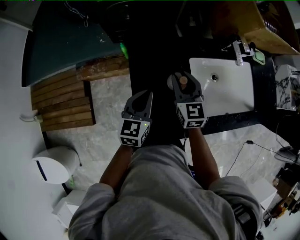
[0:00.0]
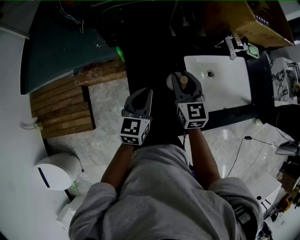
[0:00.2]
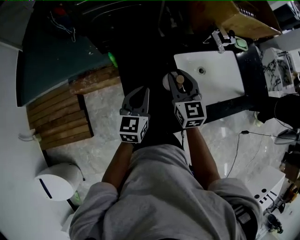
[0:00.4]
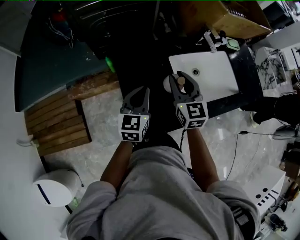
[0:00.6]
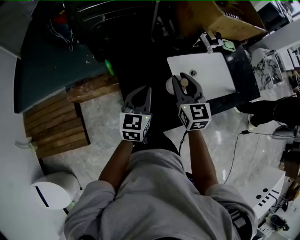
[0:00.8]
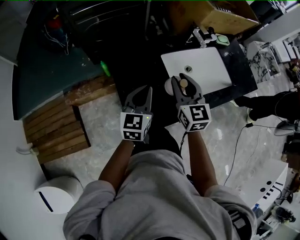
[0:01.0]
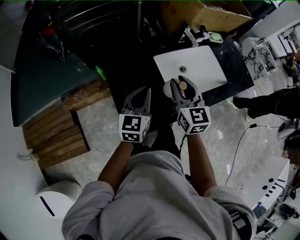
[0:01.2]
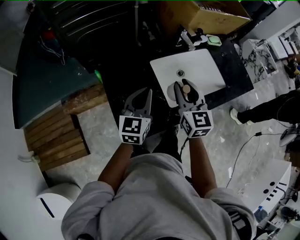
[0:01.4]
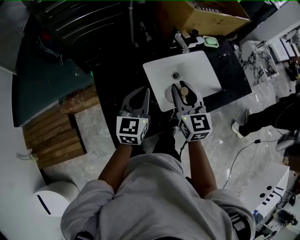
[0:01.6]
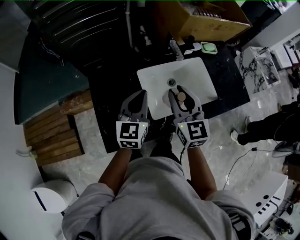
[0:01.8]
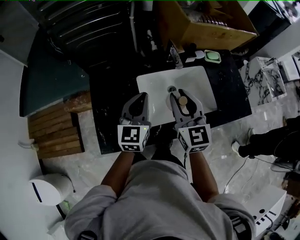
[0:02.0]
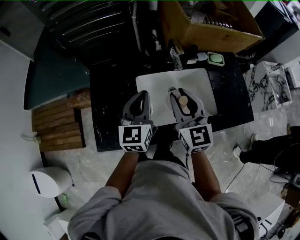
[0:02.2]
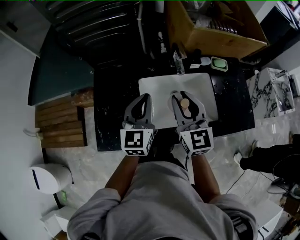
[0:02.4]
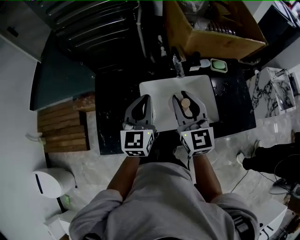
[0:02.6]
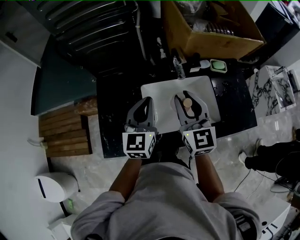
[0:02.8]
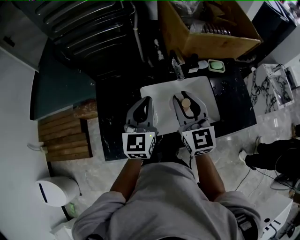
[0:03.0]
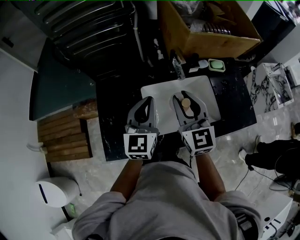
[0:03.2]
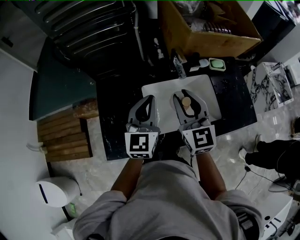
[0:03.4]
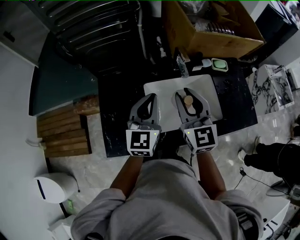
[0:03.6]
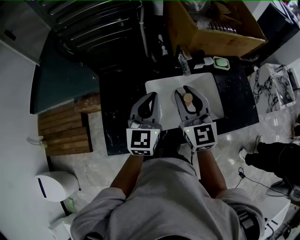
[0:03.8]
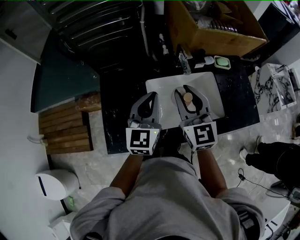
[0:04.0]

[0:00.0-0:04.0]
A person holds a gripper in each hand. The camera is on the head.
0:00.0 to 0:01.4: The right gripper travels to the right, upward and backward by roughly 20 cm. Meanwhile the left gripper heads to the right and upward, covering approximately 15 cm.
0:01.4 to 0:02.6: The right gripper moves to the right and forward, roughly 15 cm. The left gripper travels to the right, forward and upward by roughly 15 cm, and changes its angle by approximately 20 degrees.
0:02.6 to 0:04.0: There are only small adjustments of the grippers.

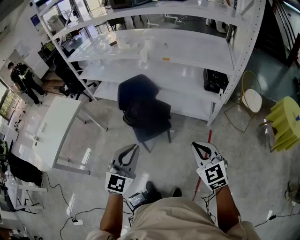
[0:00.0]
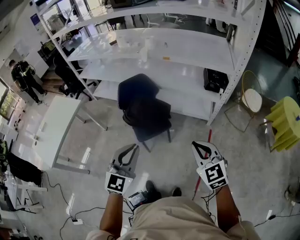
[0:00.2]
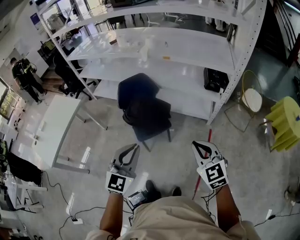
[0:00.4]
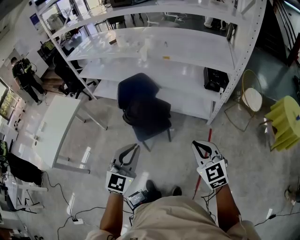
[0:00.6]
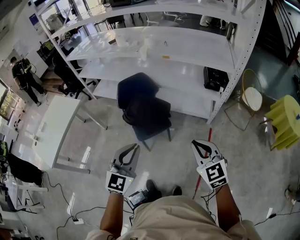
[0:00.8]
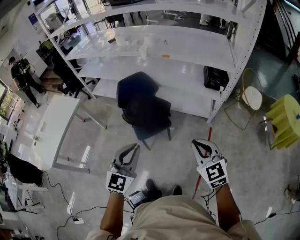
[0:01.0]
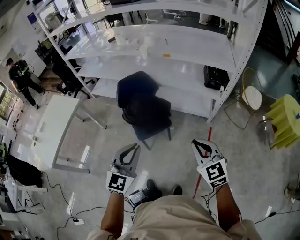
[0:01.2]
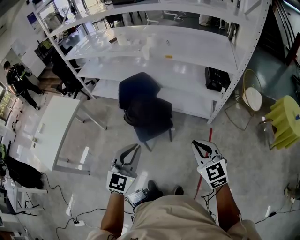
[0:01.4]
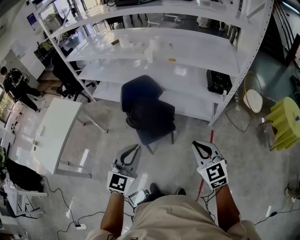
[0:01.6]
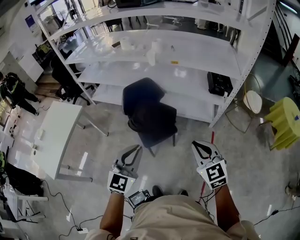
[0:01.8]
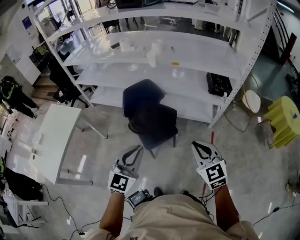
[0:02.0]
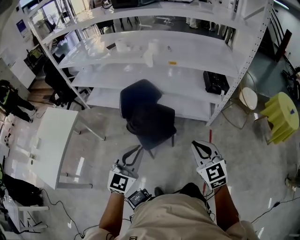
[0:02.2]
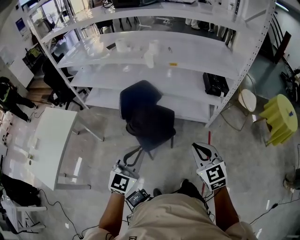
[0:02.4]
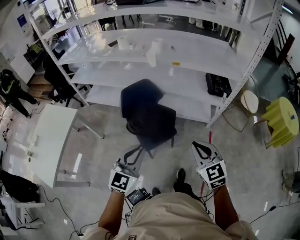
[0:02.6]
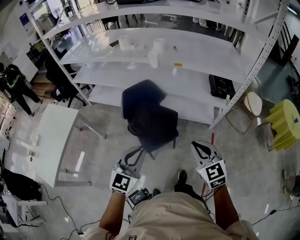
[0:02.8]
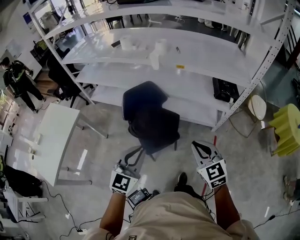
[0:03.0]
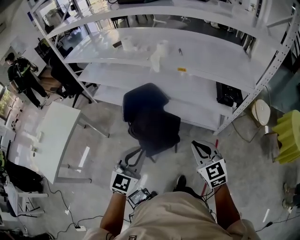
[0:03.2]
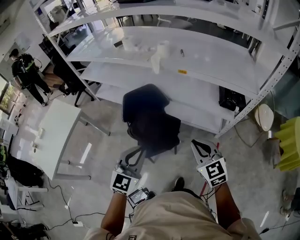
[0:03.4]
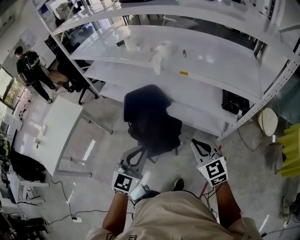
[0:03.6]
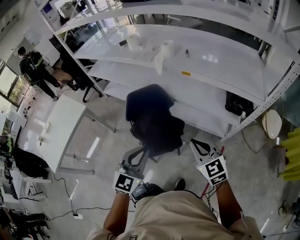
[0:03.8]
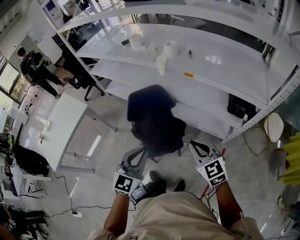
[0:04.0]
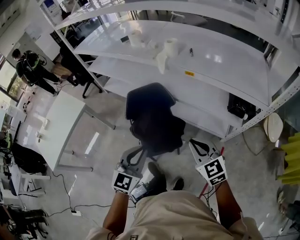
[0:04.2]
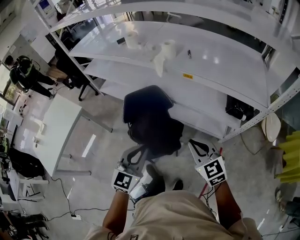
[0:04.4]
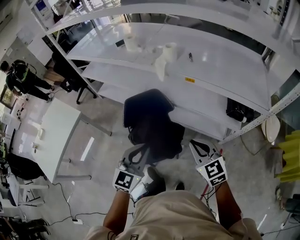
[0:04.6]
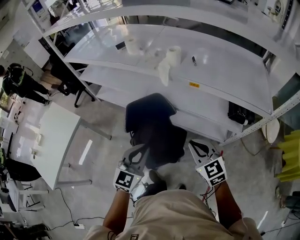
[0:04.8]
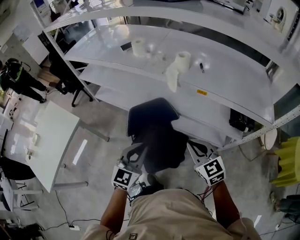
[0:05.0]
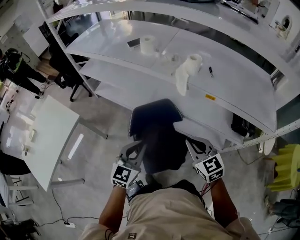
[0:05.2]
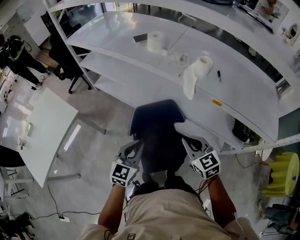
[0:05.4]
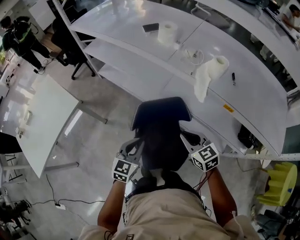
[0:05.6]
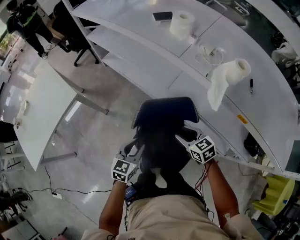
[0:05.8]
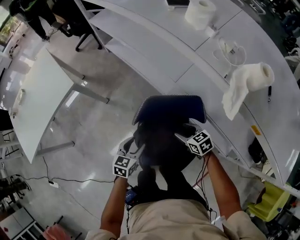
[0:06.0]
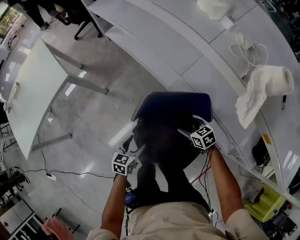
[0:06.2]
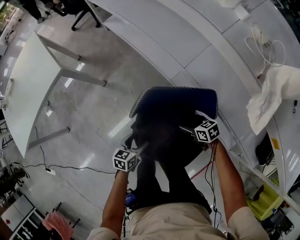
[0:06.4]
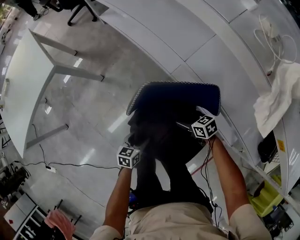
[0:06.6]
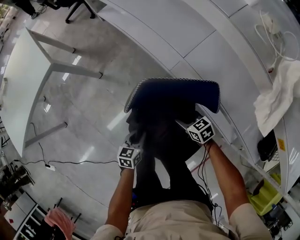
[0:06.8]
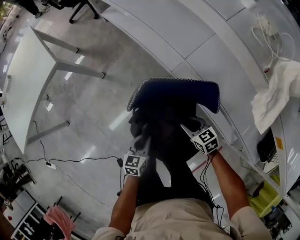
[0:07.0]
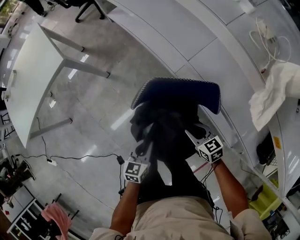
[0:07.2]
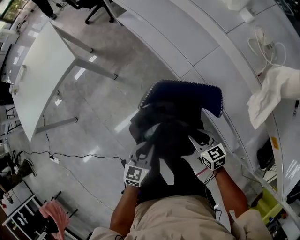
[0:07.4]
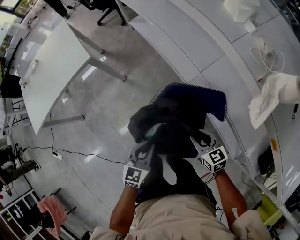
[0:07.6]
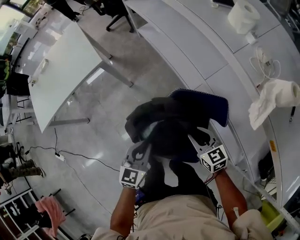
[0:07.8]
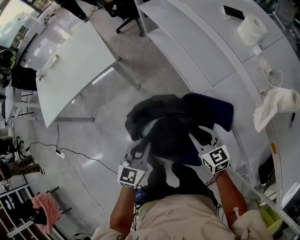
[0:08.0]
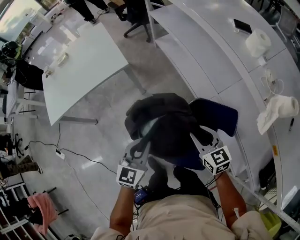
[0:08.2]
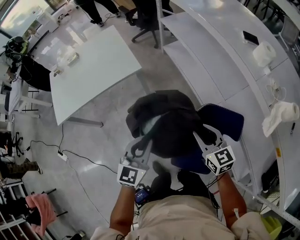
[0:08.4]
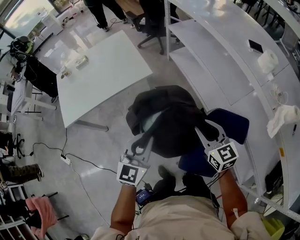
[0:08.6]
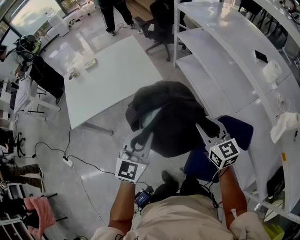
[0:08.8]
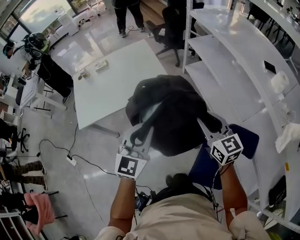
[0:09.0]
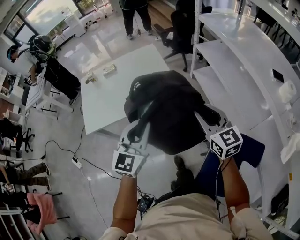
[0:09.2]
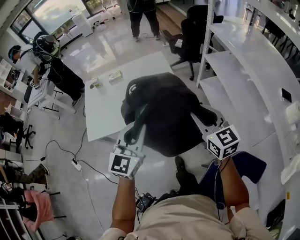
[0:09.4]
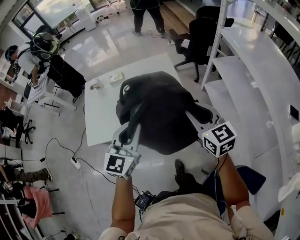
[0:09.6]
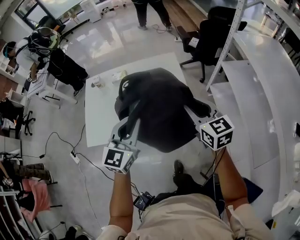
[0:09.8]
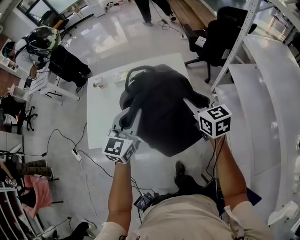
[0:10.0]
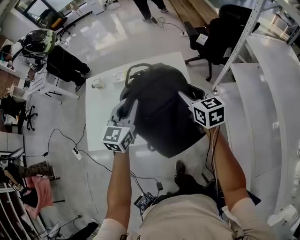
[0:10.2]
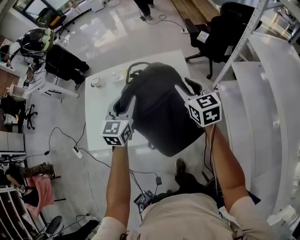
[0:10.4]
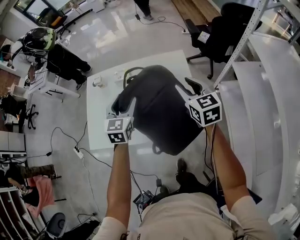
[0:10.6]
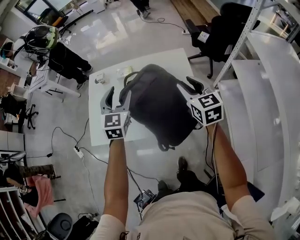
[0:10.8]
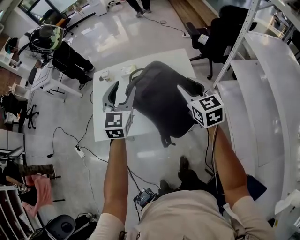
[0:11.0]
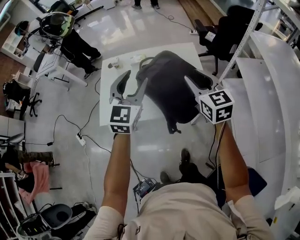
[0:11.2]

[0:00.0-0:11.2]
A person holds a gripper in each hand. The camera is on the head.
0:00.0 to 0:01.6: The grippers both shift to the left by about 5 cm.
0:01.6 to 0:03.2: The grippers both shift forward by approximately 15 cm.
0:03.2 to 0:04.8: Both grippers travel together forward, approximately 15 cm.
0:04.8 to 0:06.4: The grippers both shift downward by approximately 50 cm. The left gripper twists roughly 50 degrees counterclockwise, seen from behind, and opens up, while the right gripper changes its angle by roughly 60 degrees, and opens.
0:06.4 to 0:08.0: The left gripper is displaced upward by about 30 cm, swivels some 40 degrees, and closes up; the right gripper moves upward and to the left, approximately 30 cm, rotates approximately 30 degrees, and closes.
0:08.0 to 0:09.6: The pair of grippers is taken to the left and forward, roughly 50 cm. Both grippers move upward, some 20 cm. The right gripper turns by roughly 20 degrees, while the left gripper swivels roughly 30 degrees.
0:09.6 to 0:11.2: Both grippers travel together forward and to the left, some 15 cm. The left gripper opens its fingers.

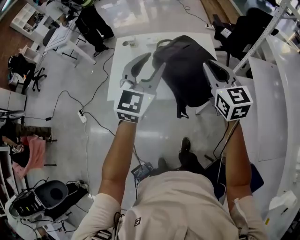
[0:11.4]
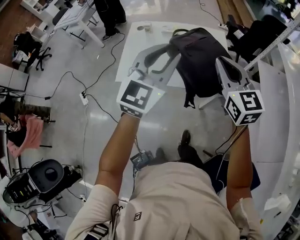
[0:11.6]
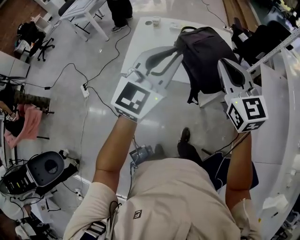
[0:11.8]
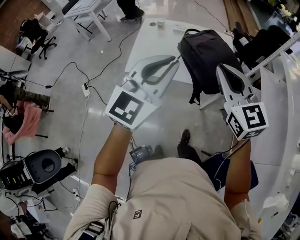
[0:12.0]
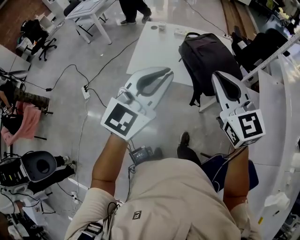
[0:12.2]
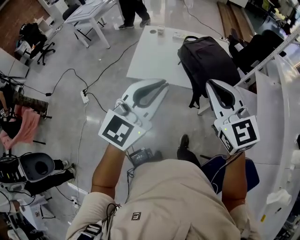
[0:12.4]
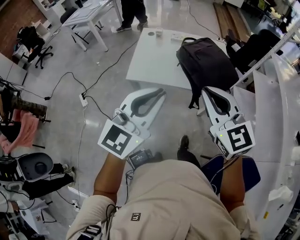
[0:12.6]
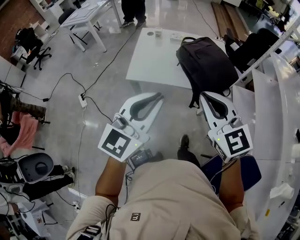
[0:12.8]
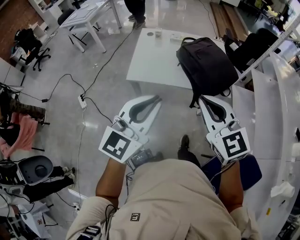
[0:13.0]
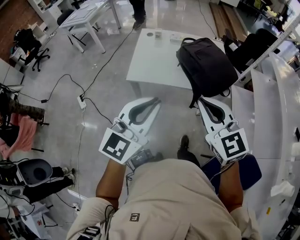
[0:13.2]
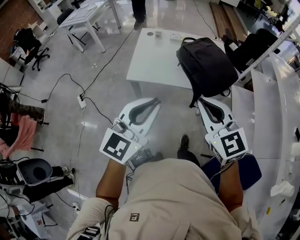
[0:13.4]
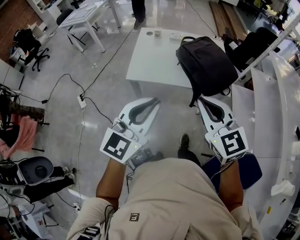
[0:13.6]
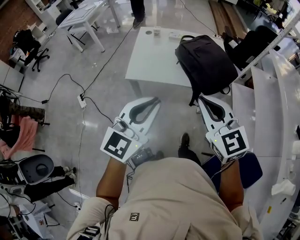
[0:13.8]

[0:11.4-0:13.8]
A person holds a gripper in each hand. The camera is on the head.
0:11.4 to 0:12.6: The two grippers go roughly 30 cm backward and to the left. The left gripper closes.
0:12.6 to 0:13.8: There are only small adjustments of the grippers.

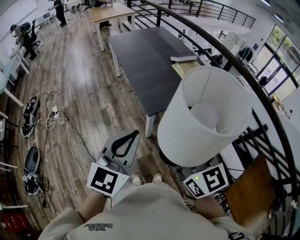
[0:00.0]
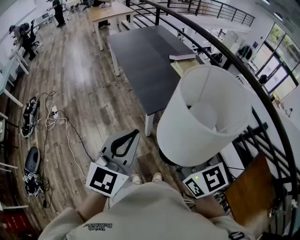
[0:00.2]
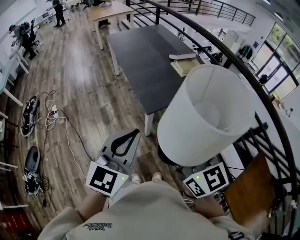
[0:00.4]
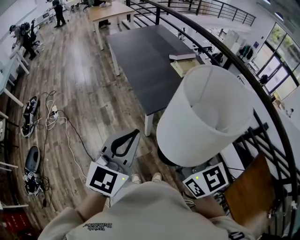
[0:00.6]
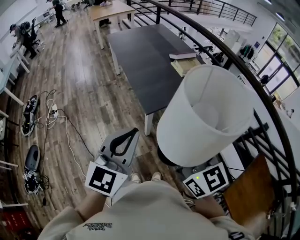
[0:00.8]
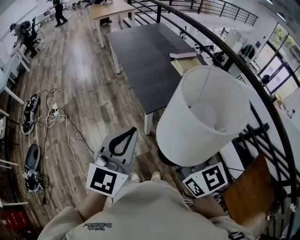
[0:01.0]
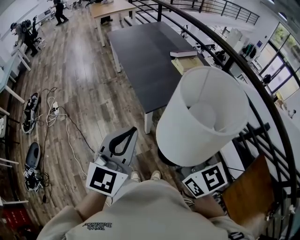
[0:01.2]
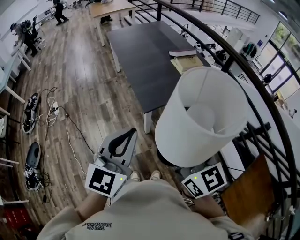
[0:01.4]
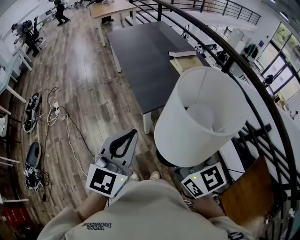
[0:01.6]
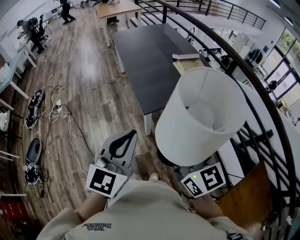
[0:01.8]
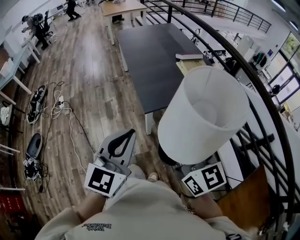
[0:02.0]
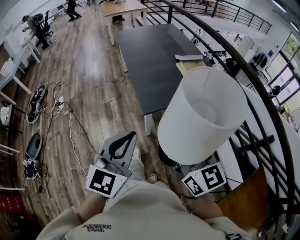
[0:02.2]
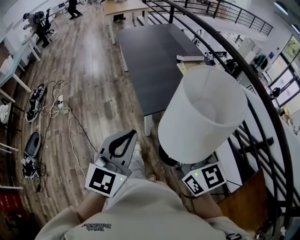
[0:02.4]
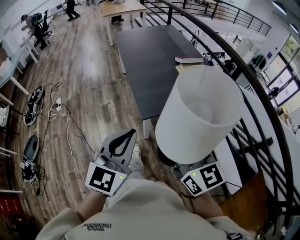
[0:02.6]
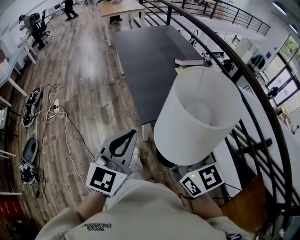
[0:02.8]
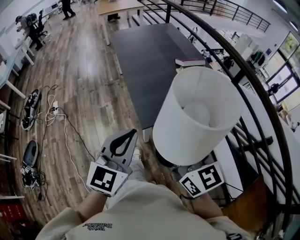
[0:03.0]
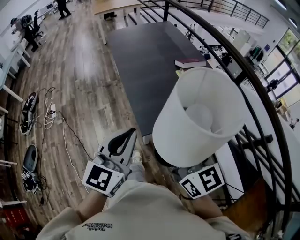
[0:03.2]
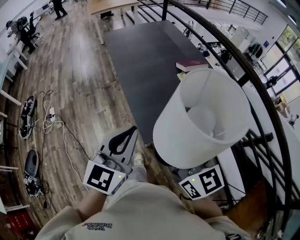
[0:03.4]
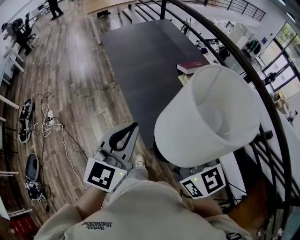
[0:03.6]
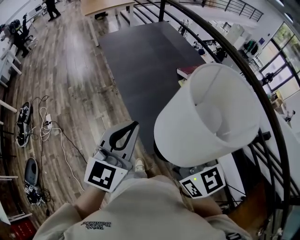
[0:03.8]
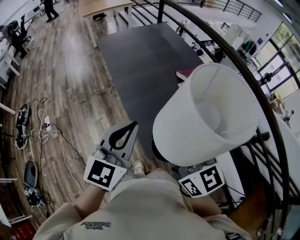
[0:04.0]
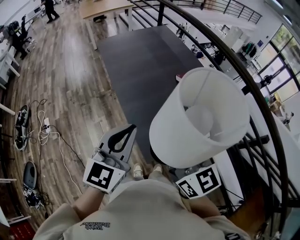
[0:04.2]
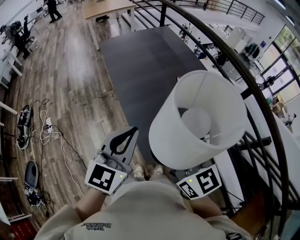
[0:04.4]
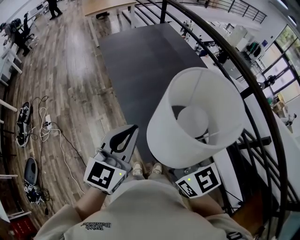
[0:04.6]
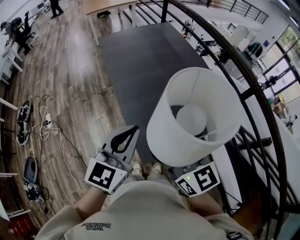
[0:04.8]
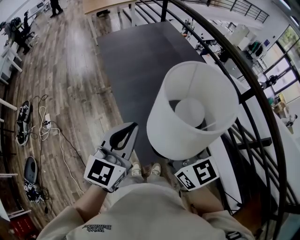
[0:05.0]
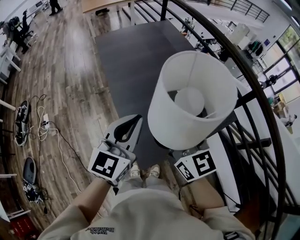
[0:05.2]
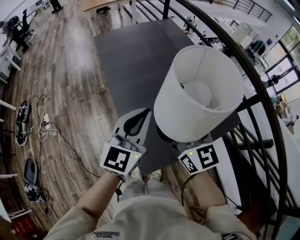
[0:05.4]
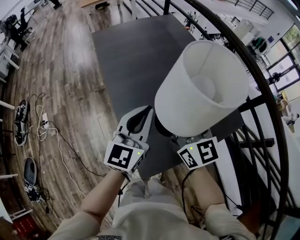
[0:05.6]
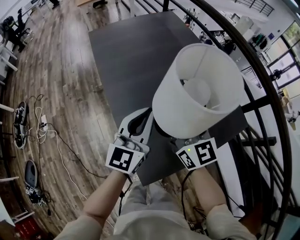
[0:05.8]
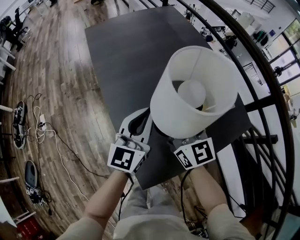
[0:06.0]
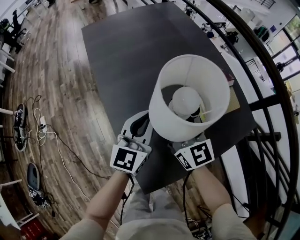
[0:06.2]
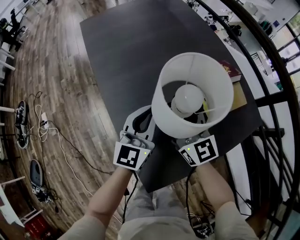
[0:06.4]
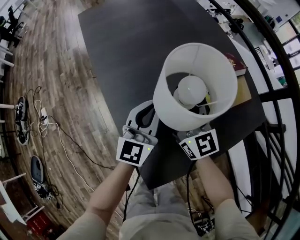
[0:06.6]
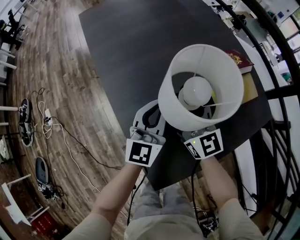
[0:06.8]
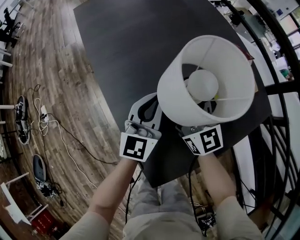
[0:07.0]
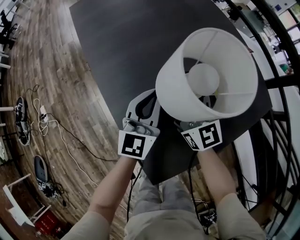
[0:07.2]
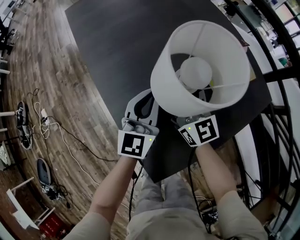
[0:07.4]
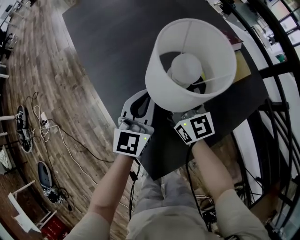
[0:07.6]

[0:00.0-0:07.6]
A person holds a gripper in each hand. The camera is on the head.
0:00.0 to 0:01.6: The grippers both shift to the right by some 5 cm.
0:01.6 to 0:03.0: The two grippers go roughly 15 cm forward.
0:03.0 to 0:04.6: Both grippers move forward, about 25 cm.
0:04.6 to 0:06.0: The grippers both shift forward and downward by about 30 cm.
0:06.0 to 0:07.6: The two grippers go about 10 cm downward.
